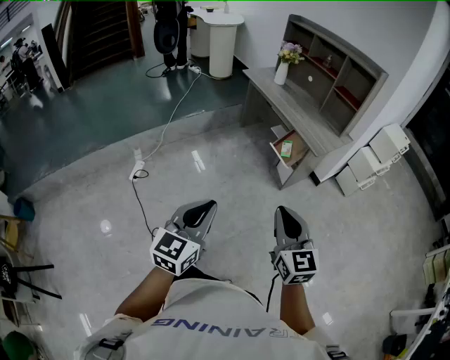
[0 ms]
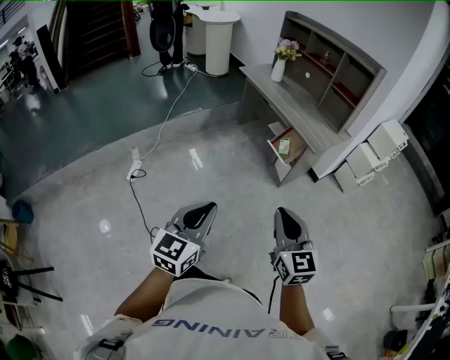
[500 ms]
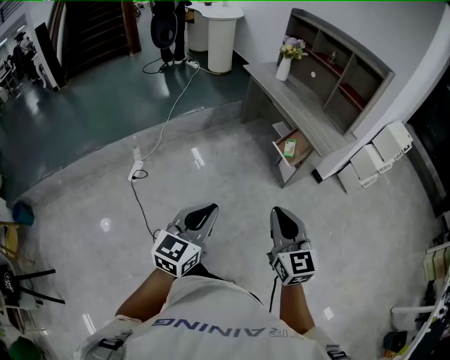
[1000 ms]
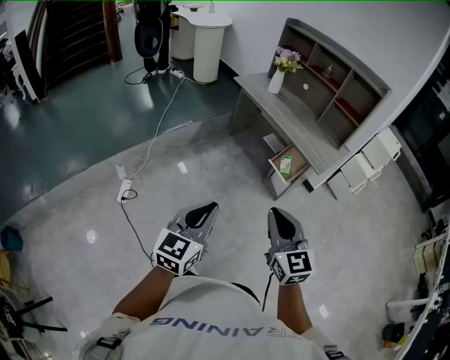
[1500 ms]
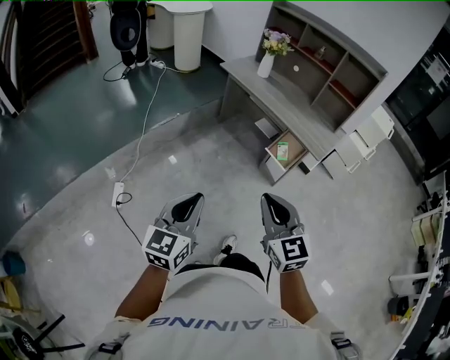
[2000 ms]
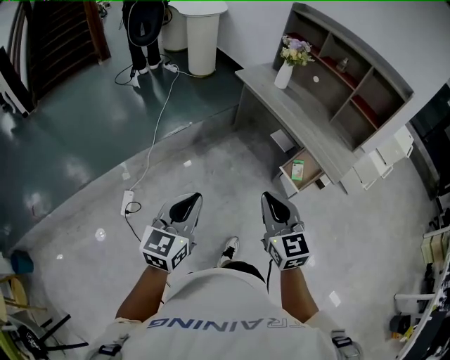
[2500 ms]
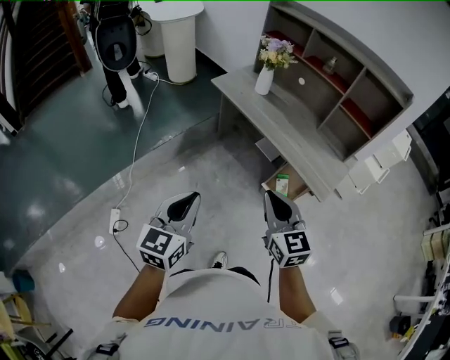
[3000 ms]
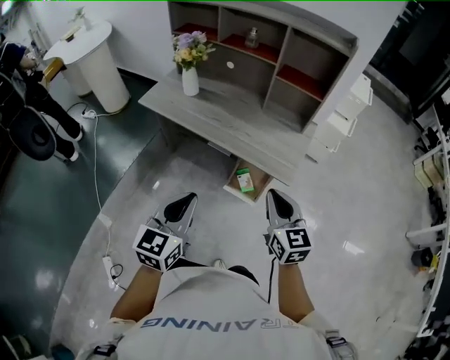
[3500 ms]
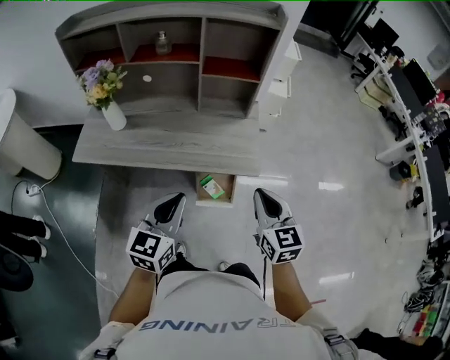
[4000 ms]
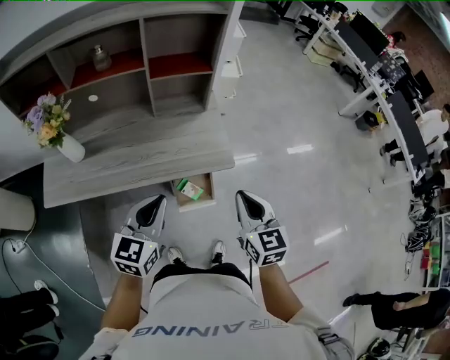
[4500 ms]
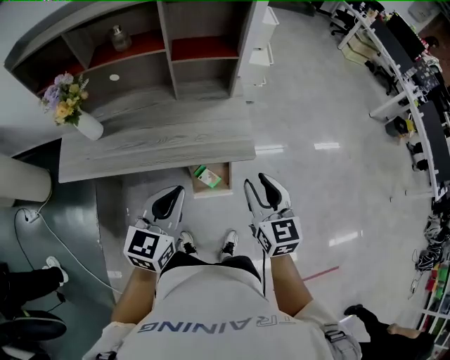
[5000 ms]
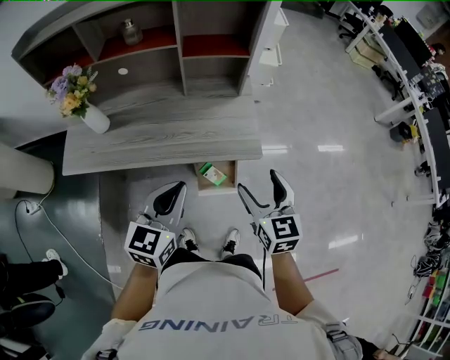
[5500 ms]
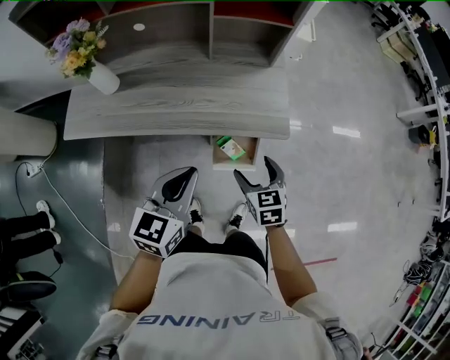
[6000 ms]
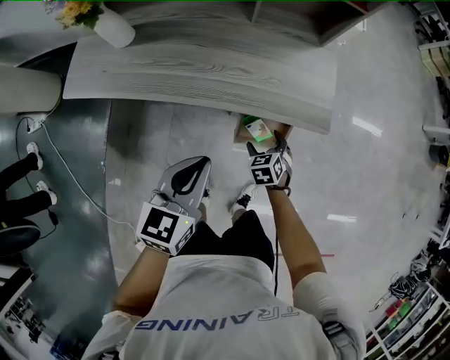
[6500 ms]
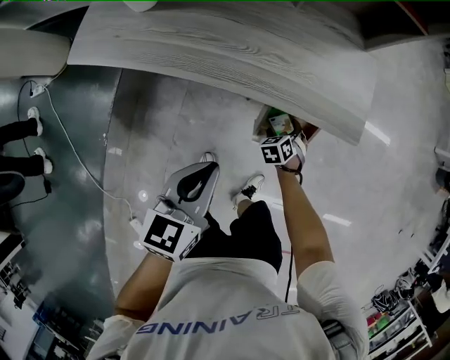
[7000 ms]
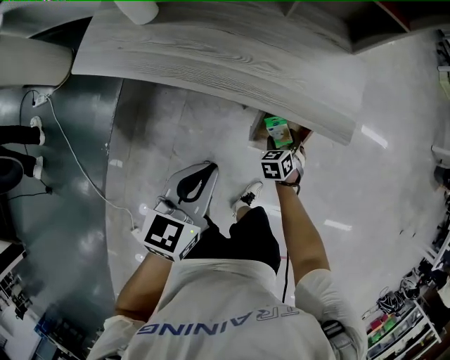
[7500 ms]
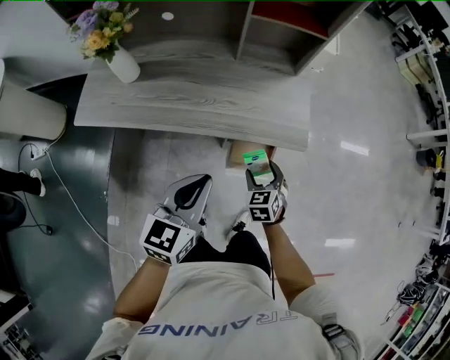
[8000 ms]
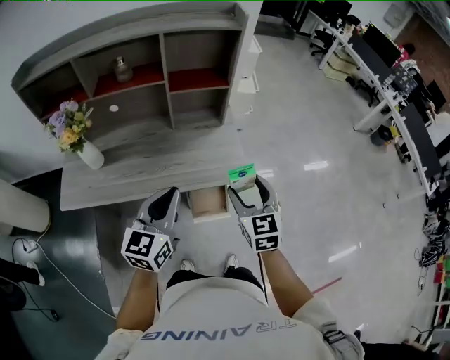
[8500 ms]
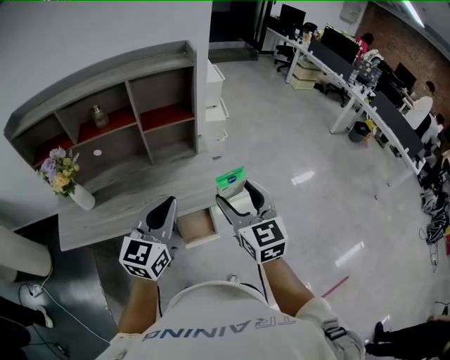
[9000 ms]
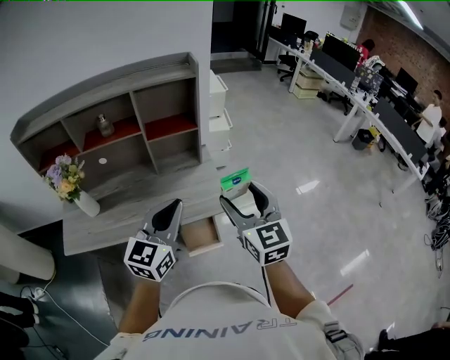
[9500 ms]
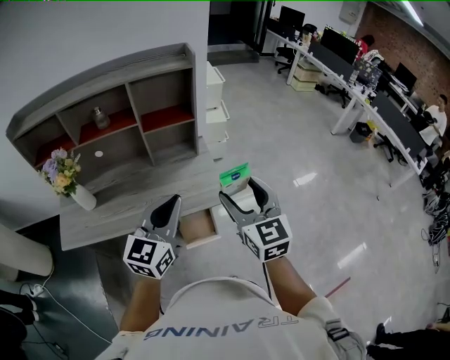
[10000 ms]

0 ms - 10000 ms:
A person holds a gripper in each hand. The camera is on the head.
0 ms - 2000 ms: The right gripper shifts some 25 cm to the left and forward, while the left gripper heads forward and to the left, covering some 30 cm.
2000 ms - 4000 ms: Both grippers are carried roughly 50 cm. The left gripper changes its angle by some 50 degrees. Meanwhile the right gripper rotates roughly 50 degrees.
4000 ms - 6000 ms: The right gripper moves downward, roughly 20 cm, changes its angle by some 20 degrees, and opens, while the left gripper heads downward and forward, covering some 10 cm.
6000 ms - 8000 ms: The left gripper travels downward and back again, some 15 cm each way. Meanwhile the right gripper reaches approximately 30 cm downward, then returns.
8000 ms - 10000 ms: The right gripper travels upward by some 40 cm, and tips its fingers upward by approximately 40 degrees. Meanwhile the left gripper moves upward and to the right, some 25 cm, and swivels some 30 degrees.

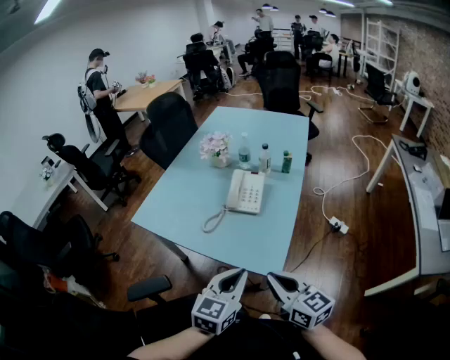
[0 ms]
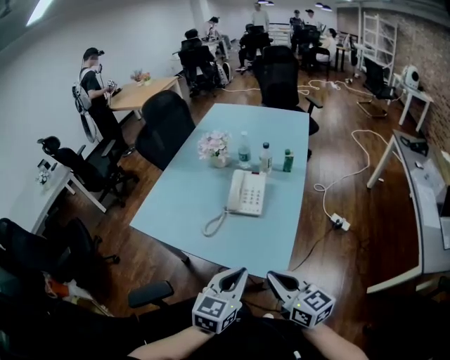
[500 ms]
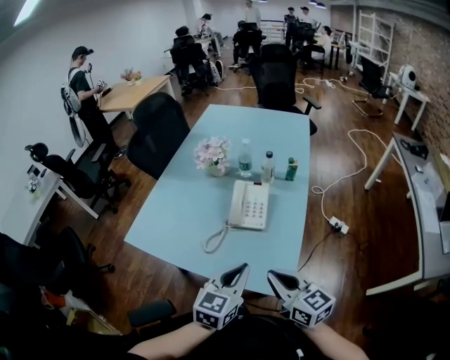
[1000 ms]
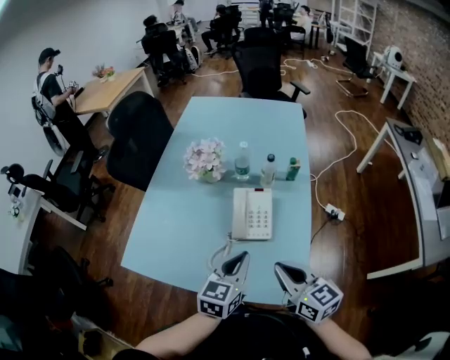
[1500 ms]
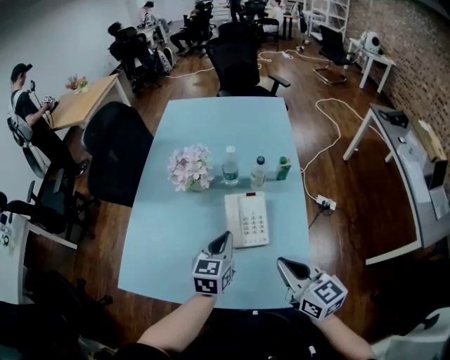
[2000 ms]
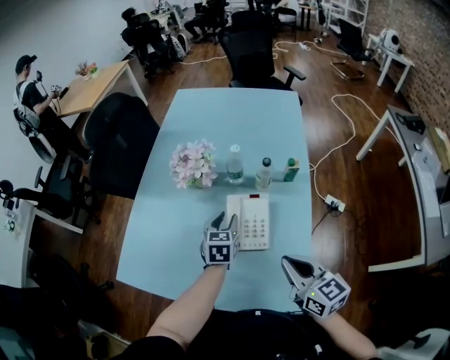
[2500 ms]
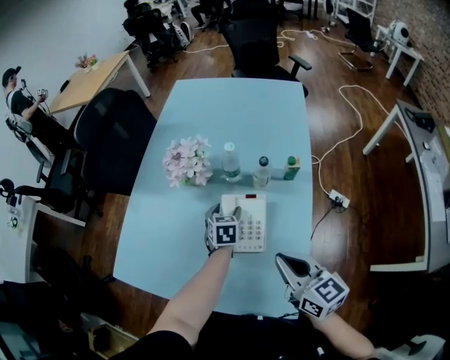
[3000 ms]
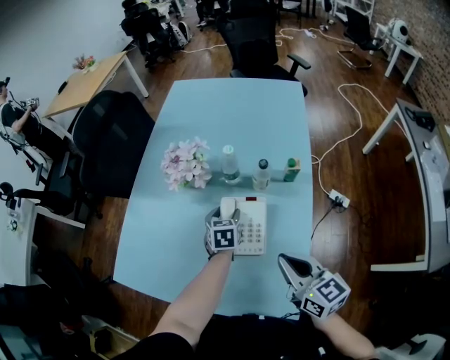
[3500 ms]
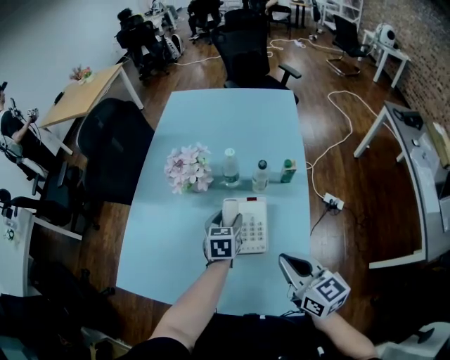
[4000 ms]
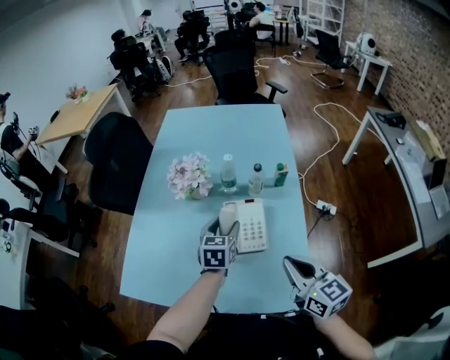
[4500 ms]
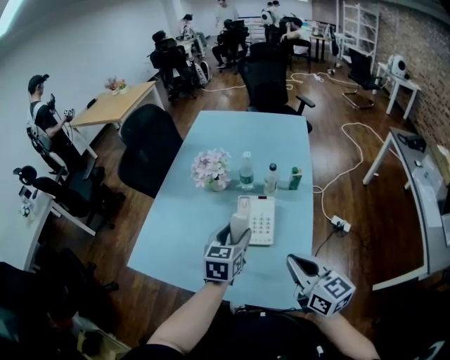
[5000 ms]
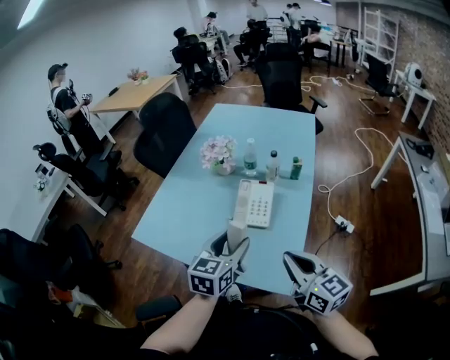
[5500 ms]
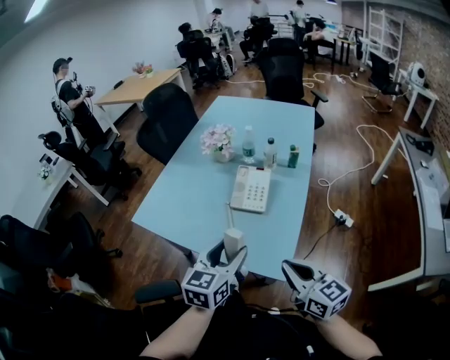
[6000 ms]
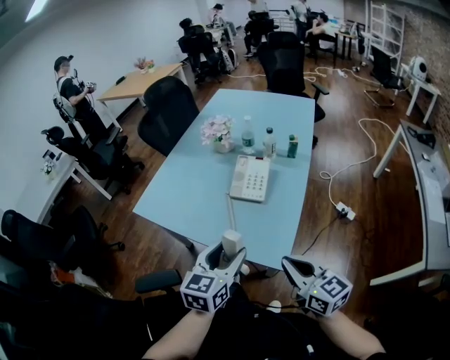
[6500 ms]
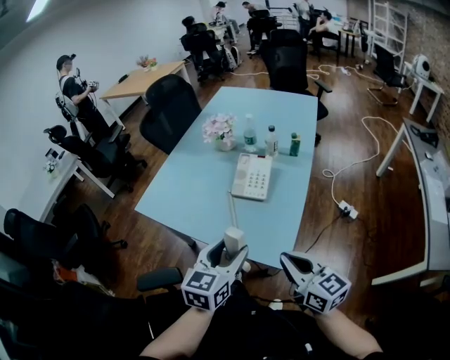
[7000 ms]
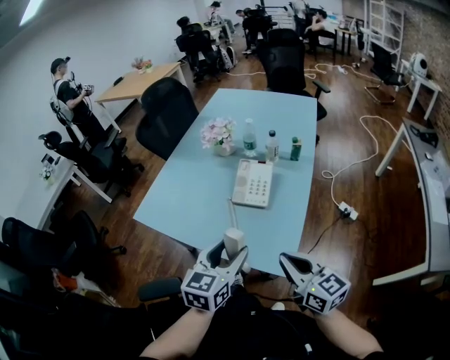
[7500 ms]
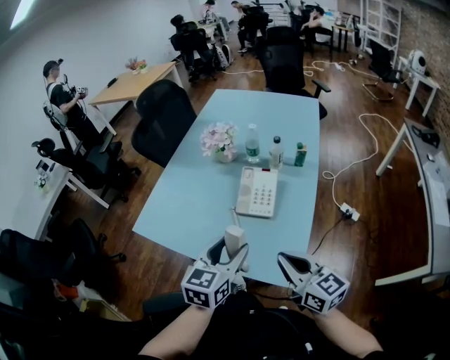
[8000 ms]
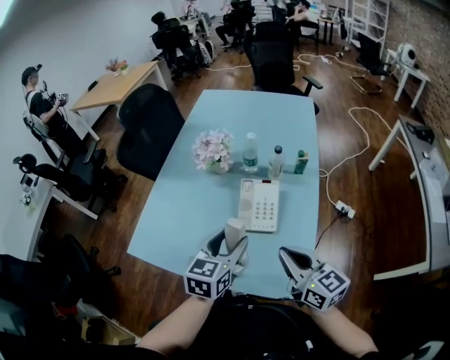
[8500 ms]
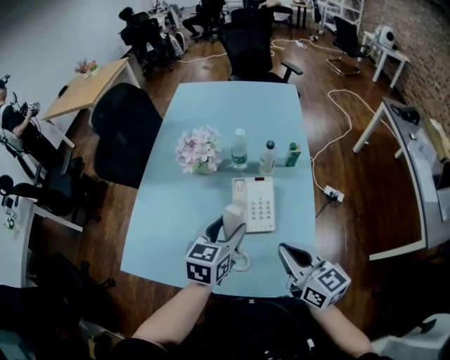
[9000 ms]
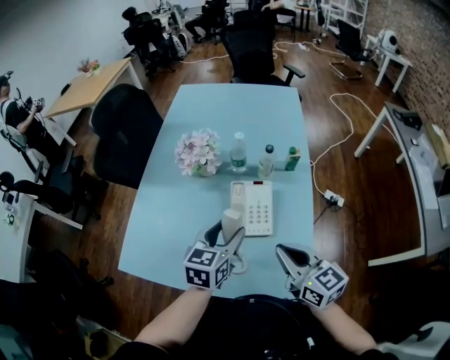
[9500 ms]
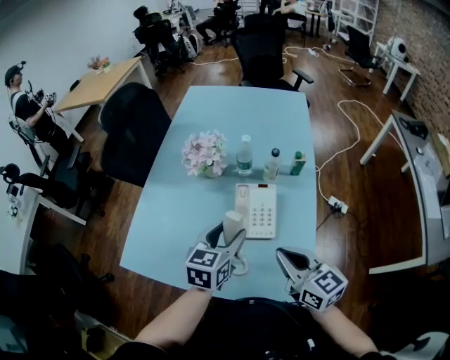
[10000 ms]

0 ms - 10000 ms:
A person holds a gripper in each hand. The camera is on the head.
0 ms - 2000 ms: The grippers both shift forward by approximately 30 cm. The right gripper swivels some 20 degrees.
2000 ms - 4000 ms: The left gripper moves forward and downward, some 15 cm, and opens, while the right gripper changes place by approximately 5 cm.
4000 ms - 6000 ms: The right gripper shifts approximately 25 cm backward; the left gripper travels backward and upward by about 40 cm.
6000 ms - 8000 ms: The grippers both shift forward by approximately 5 cm.
8000 ms - 10000 ms: The two grippers go about 15 cm forward.

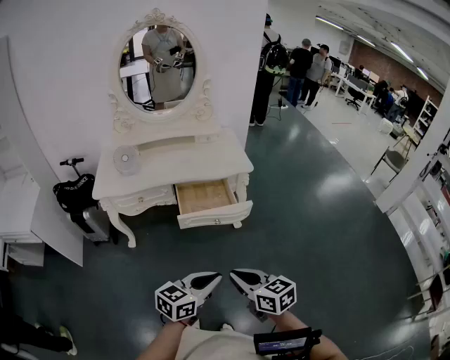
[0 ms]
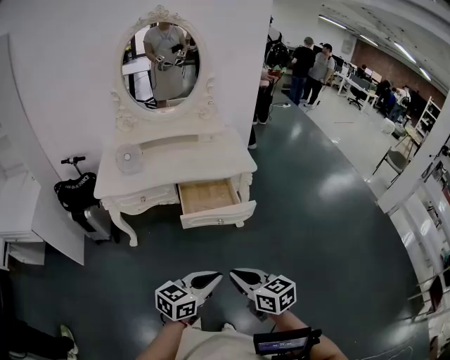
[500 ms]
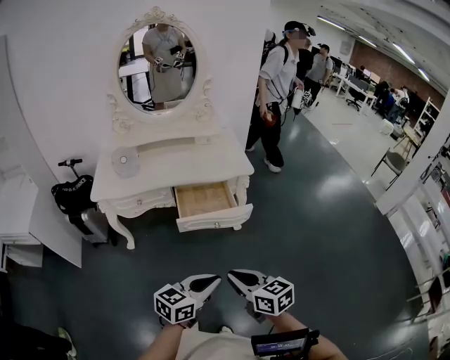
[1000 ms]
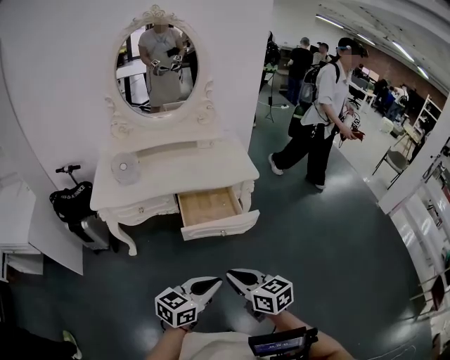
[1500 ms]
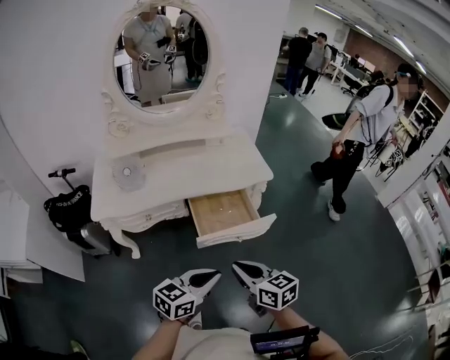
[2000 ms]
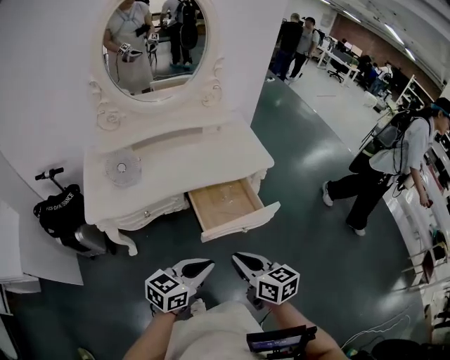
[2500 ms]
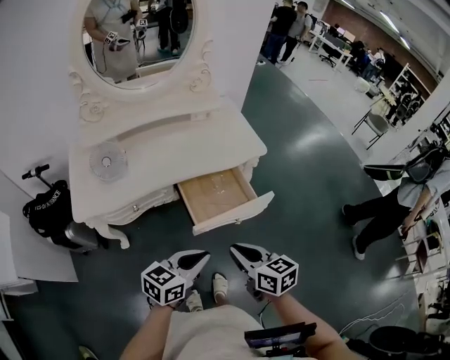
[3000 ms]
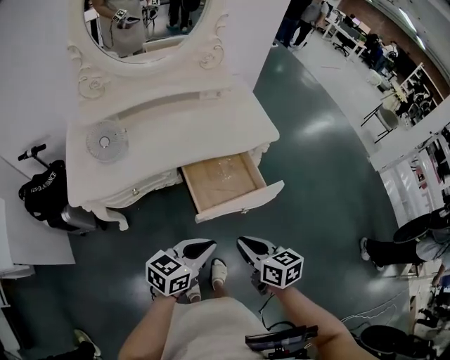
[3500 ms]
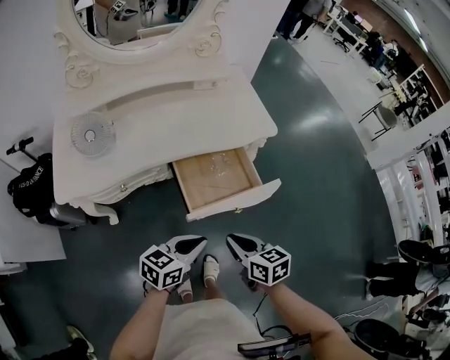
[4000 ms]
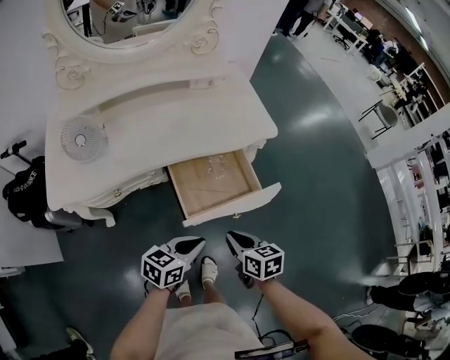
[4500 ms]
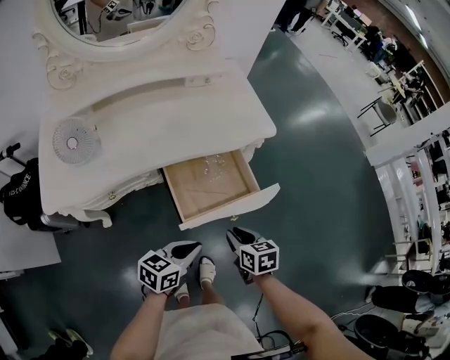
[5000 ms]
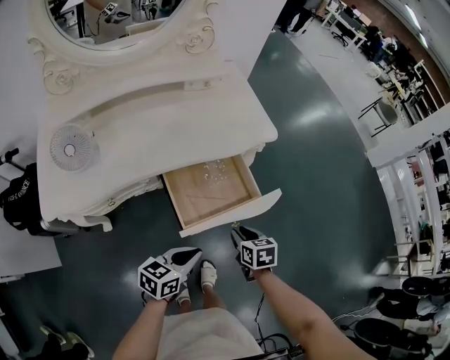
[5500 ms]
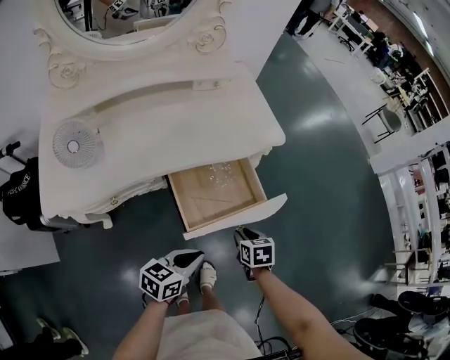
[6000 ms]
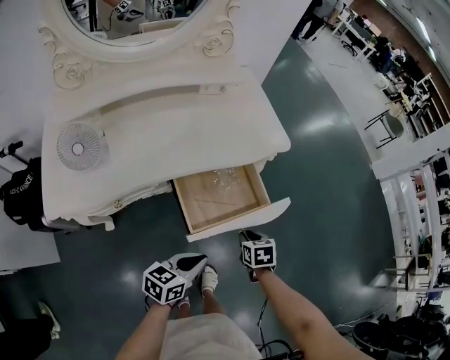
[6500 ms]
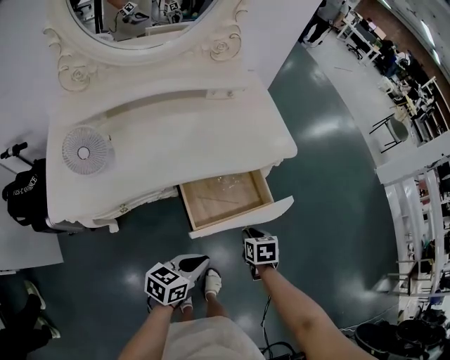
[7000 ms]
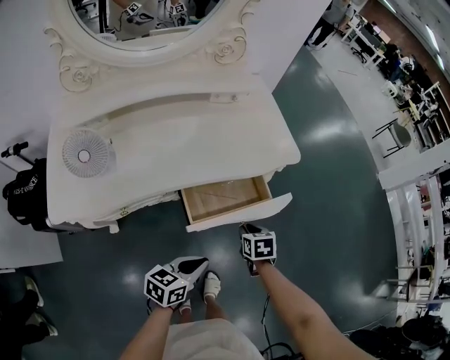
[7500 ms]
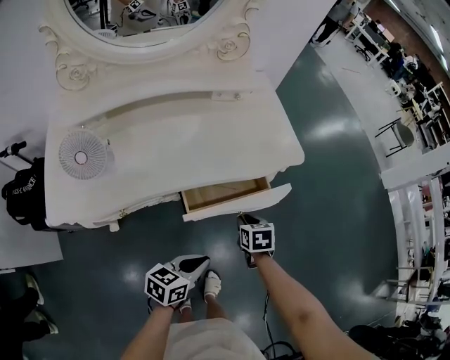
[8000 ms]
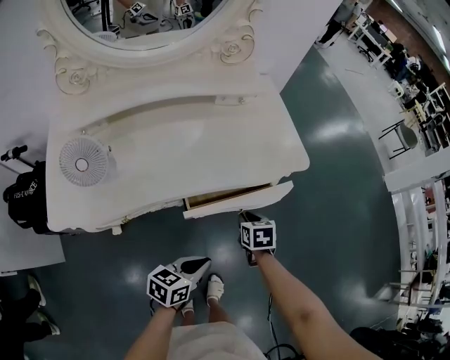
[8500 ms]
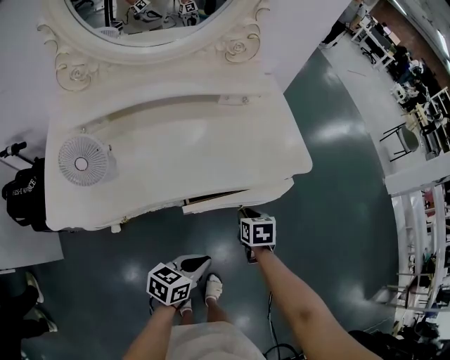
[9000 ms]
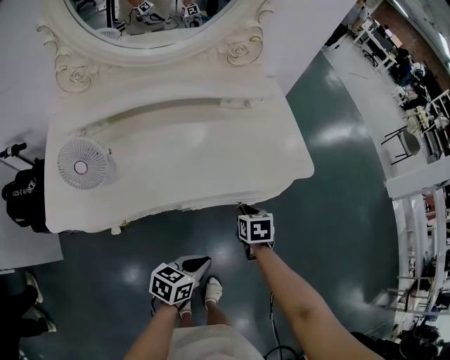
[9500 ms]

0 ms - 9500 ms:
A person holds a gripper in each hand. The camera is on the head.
0 ms - 2000 ms: Both grippers move forward and to the left, approximately 20 cm.
2000 ms - 4000 ms: The left gripper moves downward, forward and to the left, approximately 15 cm; the right gripper moves downward and forward, some 15 cm.
4000 ms - 5500 ms: The right gripper goes some 15 cm downward, forward and to the right, turns by about 20 degrees, and opens its fingers. The left gripper heads downward, covering approximately 5 cm.
5500 ms - 7500 ms: The right gripper goes approximately 10 cm forward.
7500 ms - 9500 ms: The right gripper heads forward and to the left, covering roughly 15 cm; the left gripper moves forward, roughly 5 cm.
